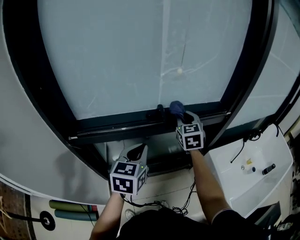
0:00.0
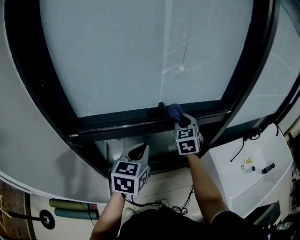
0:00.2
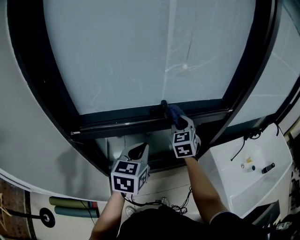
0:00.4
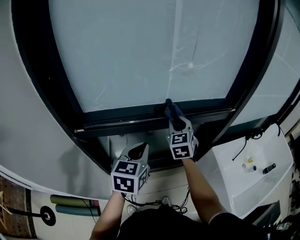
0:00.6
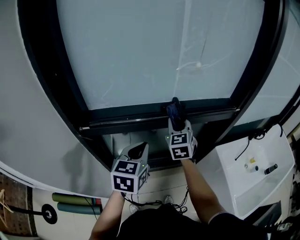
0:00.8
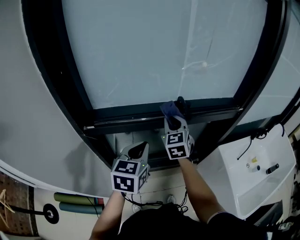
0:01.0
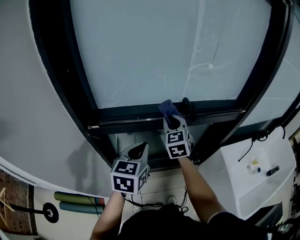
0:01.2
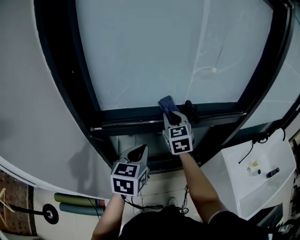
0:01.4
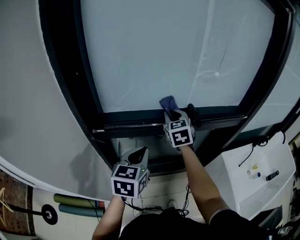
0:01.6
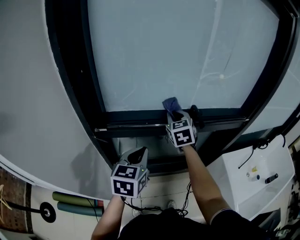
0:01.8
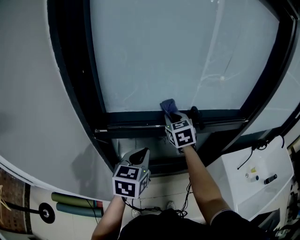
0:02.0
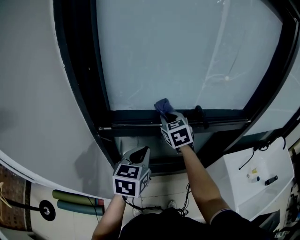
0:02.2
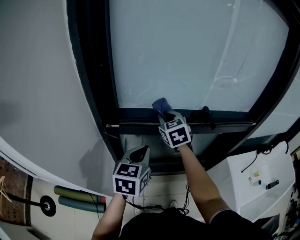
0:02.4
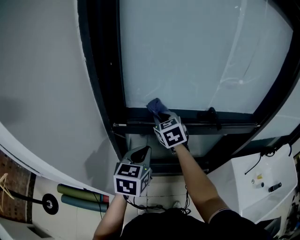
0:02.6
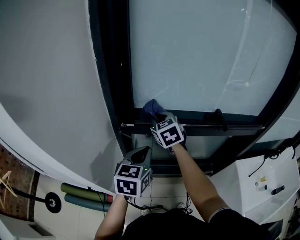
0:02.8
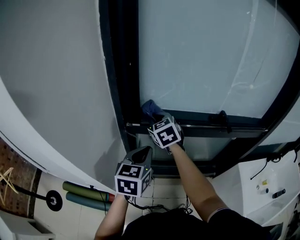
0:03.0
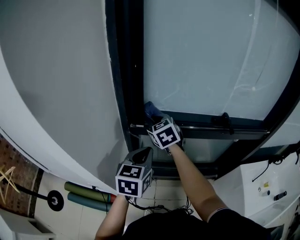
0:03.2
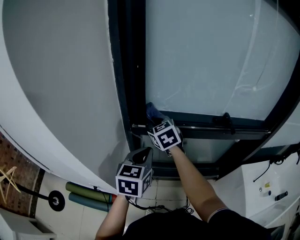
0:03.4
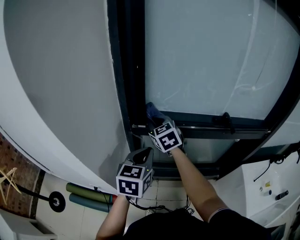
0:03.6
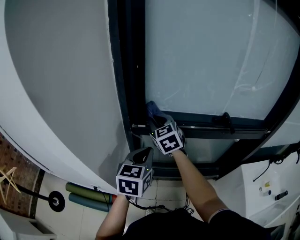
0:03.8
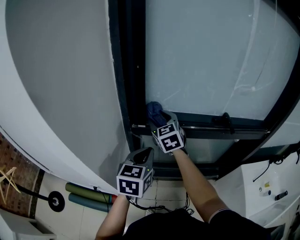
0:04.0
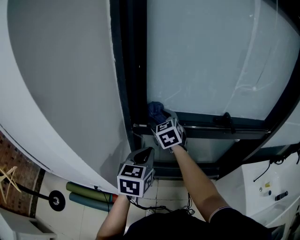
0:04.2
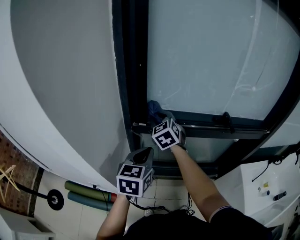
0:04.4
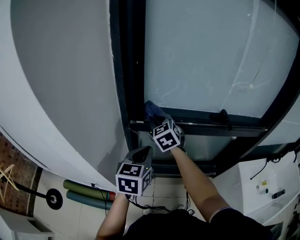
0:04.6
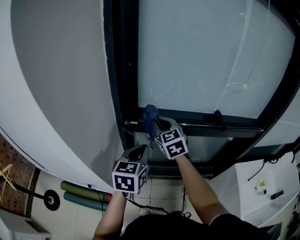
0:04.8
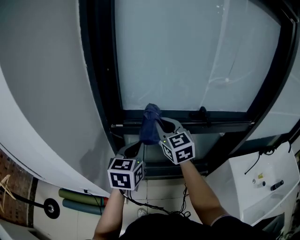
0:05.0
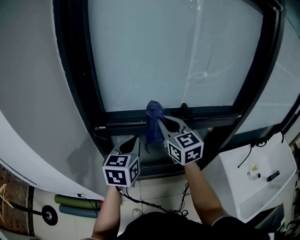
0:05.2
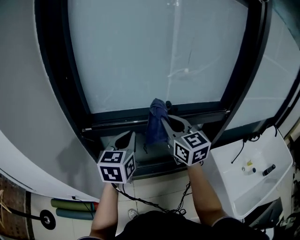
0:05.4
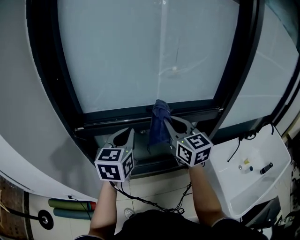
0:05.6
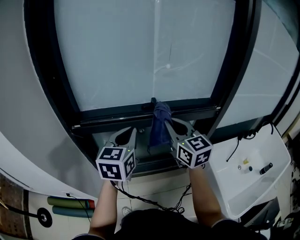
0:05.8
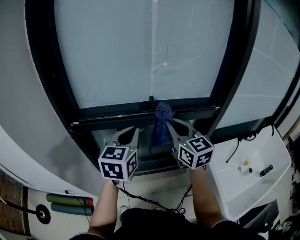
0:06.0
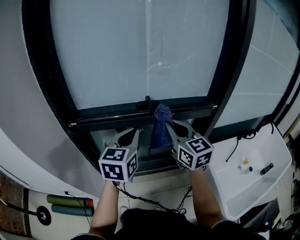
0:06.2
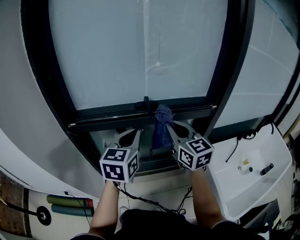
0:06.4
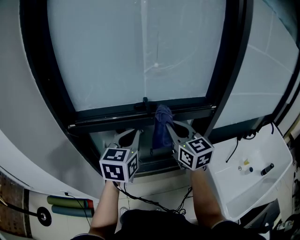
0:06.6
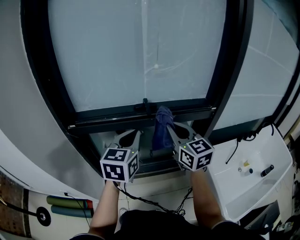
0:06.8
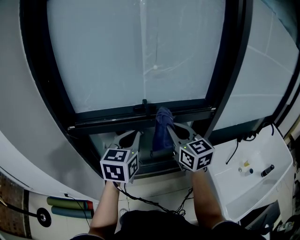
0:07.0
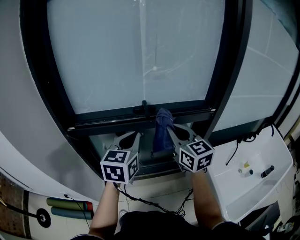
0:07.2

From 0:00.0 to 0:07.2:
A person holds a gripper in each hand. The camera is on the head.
From 0:00.0 to 0:01.4: The left gripper heads to the left, covering approximately 10 cm. The right gripper goes approximately 20 cm to the left.
From 0:01.4 to 0:02.8: The right gripper is displaced to the left by some 20 cm, and turns by approximately 20 degrees. Meanwhile the left gripper heads to the left, covering some 10 cm.
From 0:02.8 to 0:04.4: The right gripper is displaced to the left by roughly 5 cm, and opens.
From 0:04.4 to 0:05.8: The right gripper heads to the right and backward, covering some 40 cm, turns by roughly 30 degrees, and closes. The left gripper heads to the right, covering roughly 25 cm.
From 0:05.8 to 0:07.2: Both grippers travel together to the right, roughly 5 cm.

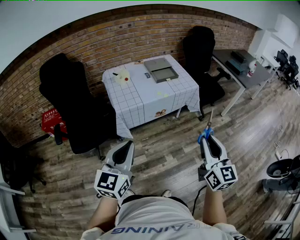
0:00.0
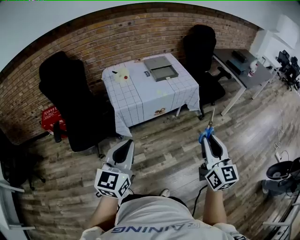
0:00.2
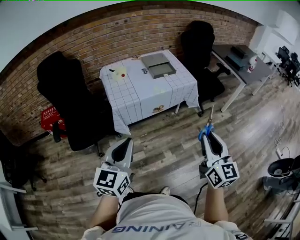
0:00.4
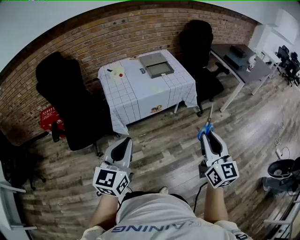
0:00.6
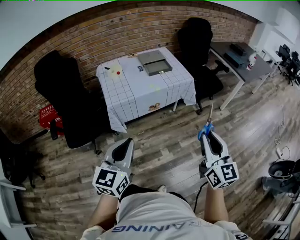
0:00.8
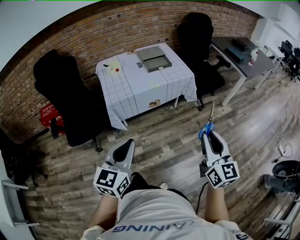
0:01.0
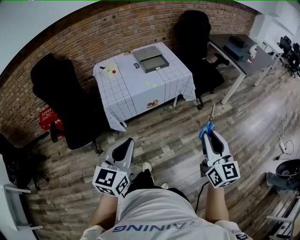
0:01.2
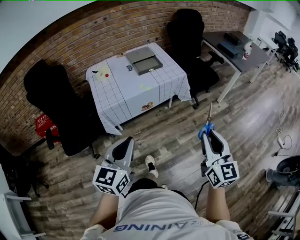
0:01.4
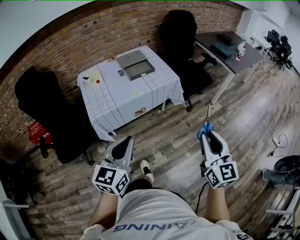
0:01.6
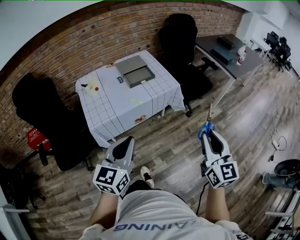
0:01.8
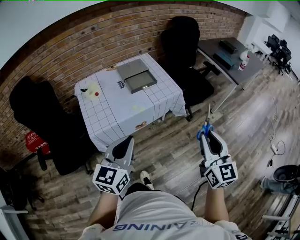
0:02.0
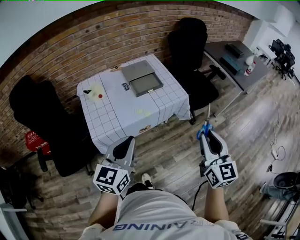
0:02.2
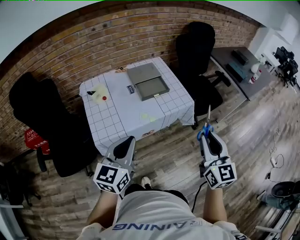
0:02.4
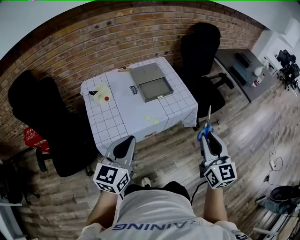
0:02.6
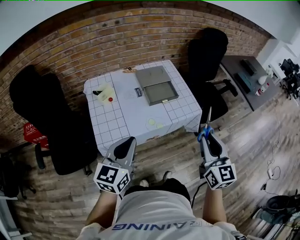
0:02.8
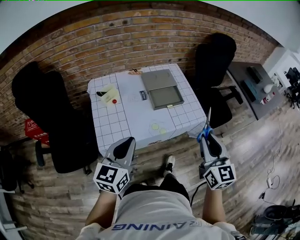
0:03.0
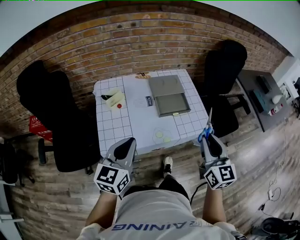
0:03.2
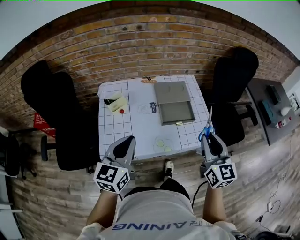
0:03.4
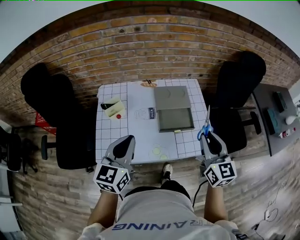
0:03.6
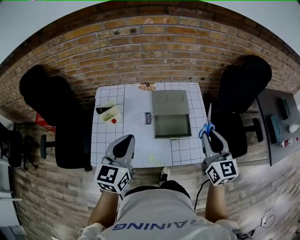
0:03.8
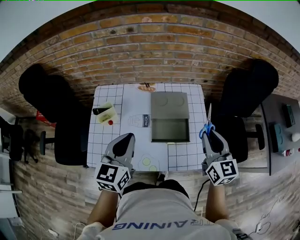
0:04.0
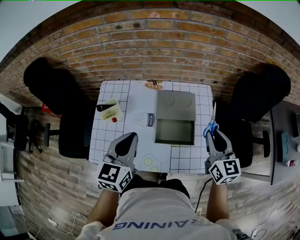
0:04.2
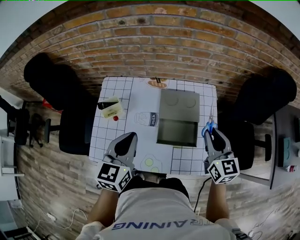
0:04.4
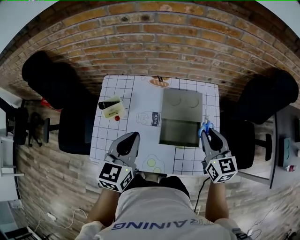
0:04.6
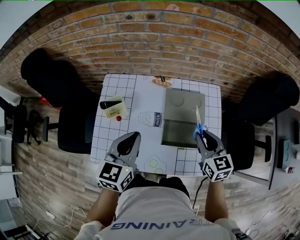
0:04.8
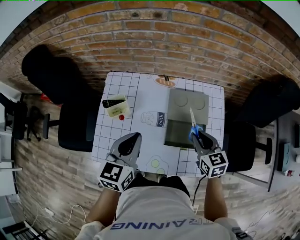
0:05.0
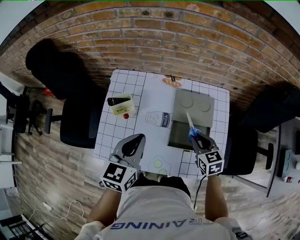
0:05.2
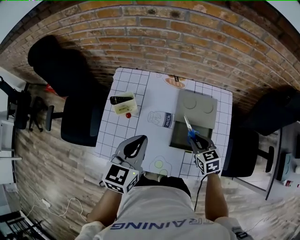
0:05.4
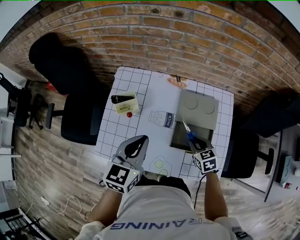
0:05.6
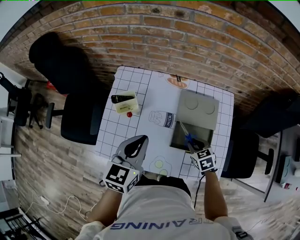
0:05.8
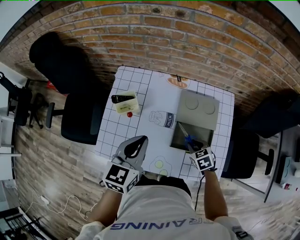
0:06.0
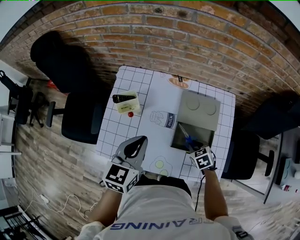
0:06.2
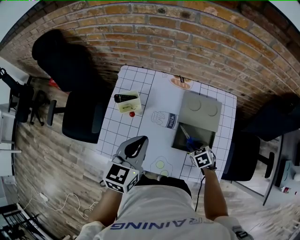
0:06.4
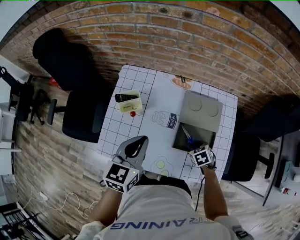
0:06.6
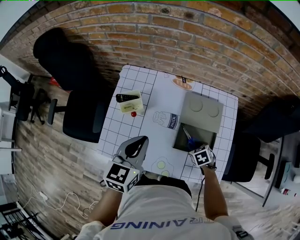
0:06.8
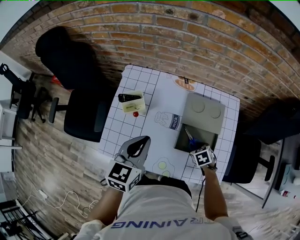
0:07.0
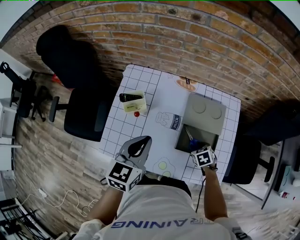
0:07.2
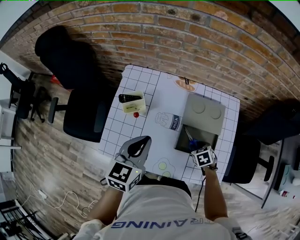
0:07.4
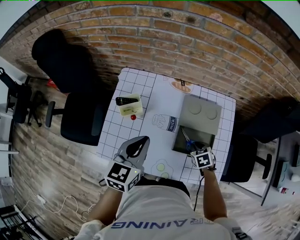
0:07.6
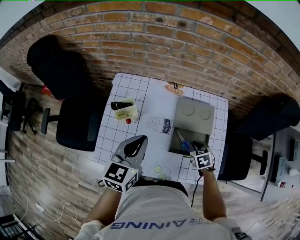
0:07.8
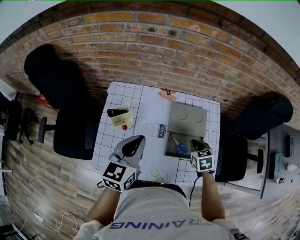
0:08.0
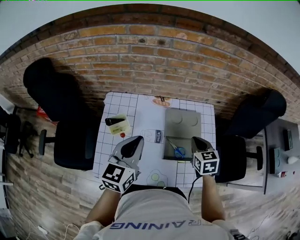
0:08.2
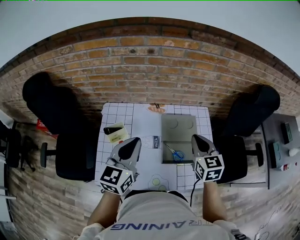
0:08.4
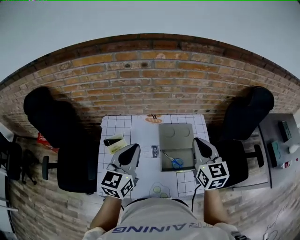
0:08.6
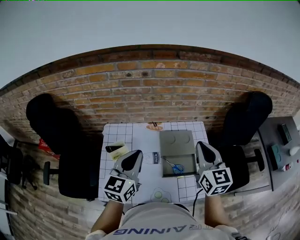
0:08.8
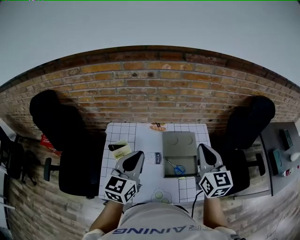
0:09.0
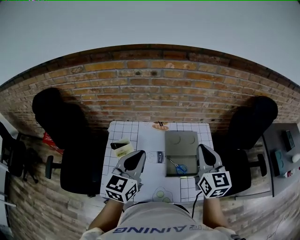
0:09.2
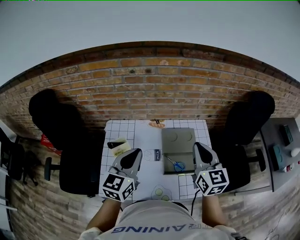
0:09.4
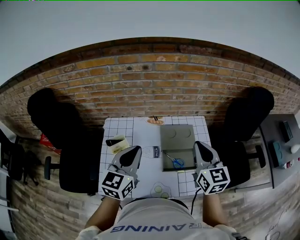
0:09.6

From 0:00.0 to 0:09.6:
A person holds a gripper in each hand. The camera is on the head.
From 0:00.0 to 0:01.6: The grippers both shift to the right and forward by about 15 cm.
From 0:01.6 to 0:03.2: Both grippers travel together forward and to the left, approximately 40 cm.
From 0:03.2 to 0:04.8: Both grippers travel together forward, some 30 cm. The left gripper turns by roughly 20 degrees. The right gripper turns by about 30 degrees.
From 0:04.8 to 0:06.4: The right gripper moves downward, roughly 20 cm, and points its fingers approximately 40 degrees further downward.
From 0:06.4 to 0:08.0: The right gripper is displaced upward by approximately 10 cm, and rotates about 20 degrees.
From 0:08.0 to 0:09.6: The left gripper is displaced upward by some 10 cm, while the right gripper shifts approximately 25 cm upward, and angles its fingers upward, by about 40 degrees.

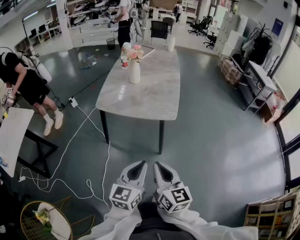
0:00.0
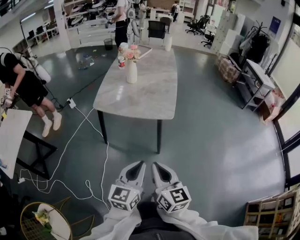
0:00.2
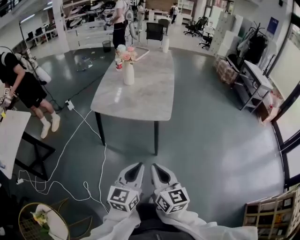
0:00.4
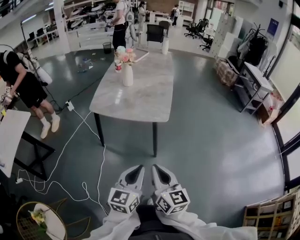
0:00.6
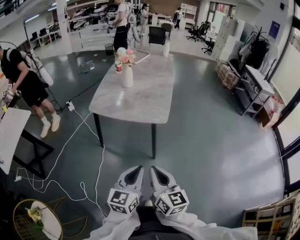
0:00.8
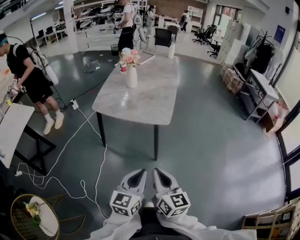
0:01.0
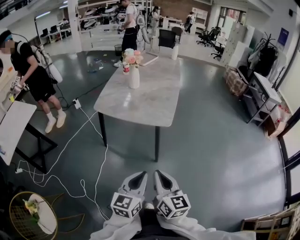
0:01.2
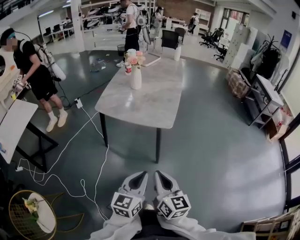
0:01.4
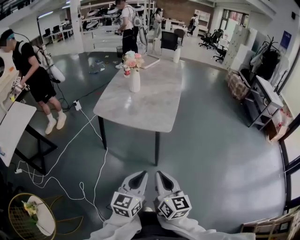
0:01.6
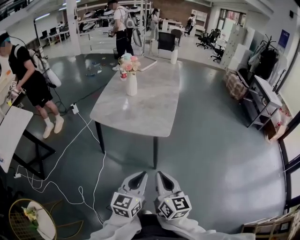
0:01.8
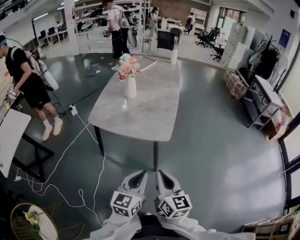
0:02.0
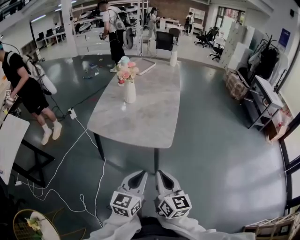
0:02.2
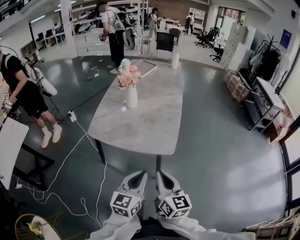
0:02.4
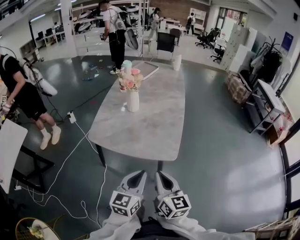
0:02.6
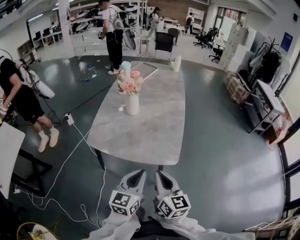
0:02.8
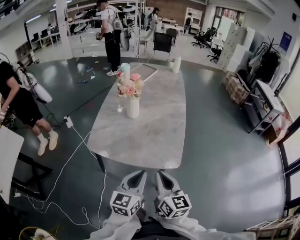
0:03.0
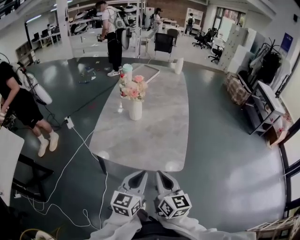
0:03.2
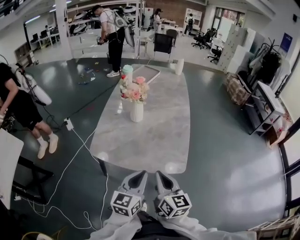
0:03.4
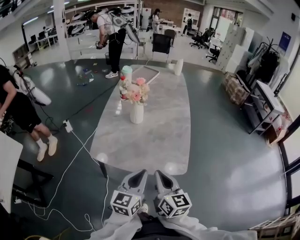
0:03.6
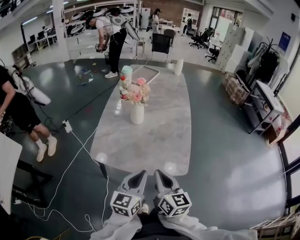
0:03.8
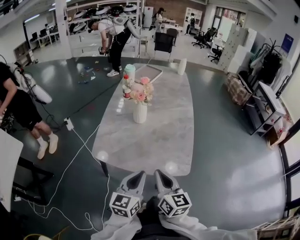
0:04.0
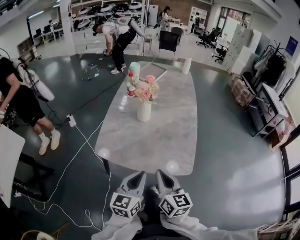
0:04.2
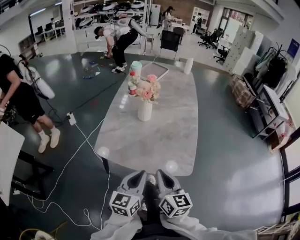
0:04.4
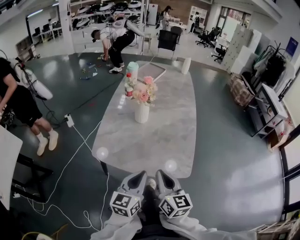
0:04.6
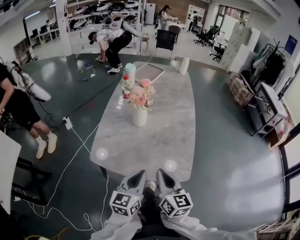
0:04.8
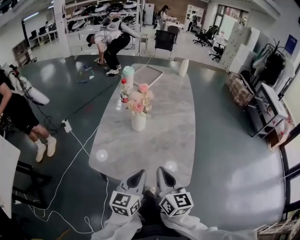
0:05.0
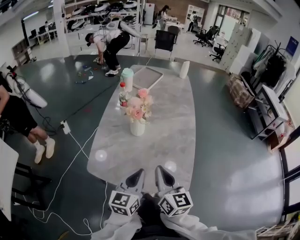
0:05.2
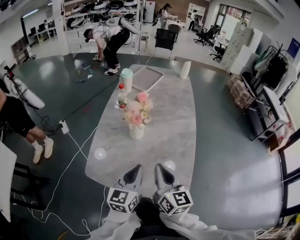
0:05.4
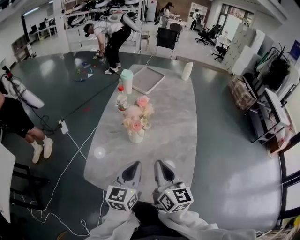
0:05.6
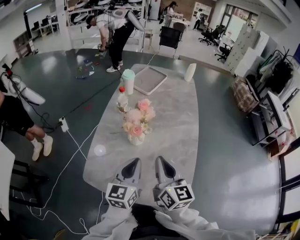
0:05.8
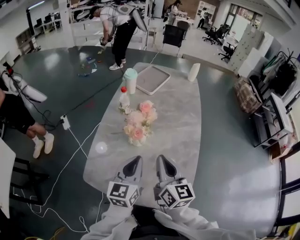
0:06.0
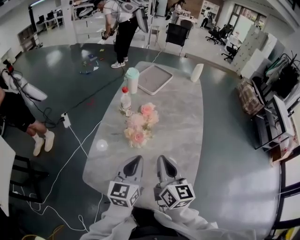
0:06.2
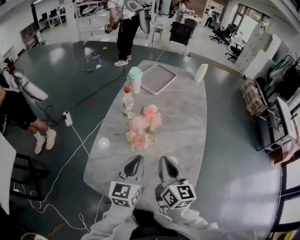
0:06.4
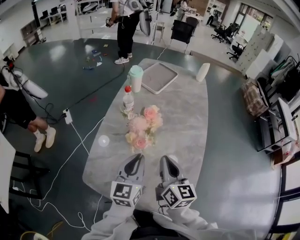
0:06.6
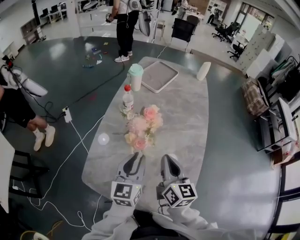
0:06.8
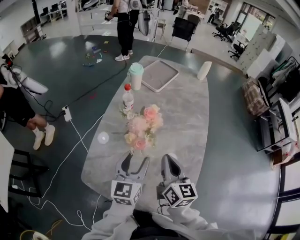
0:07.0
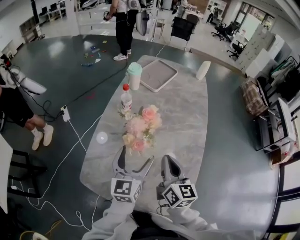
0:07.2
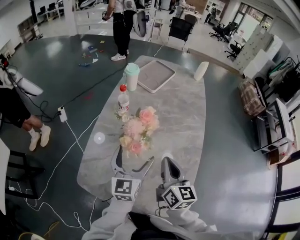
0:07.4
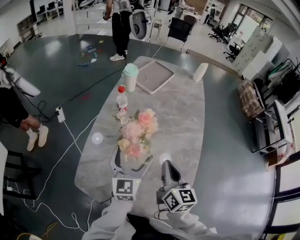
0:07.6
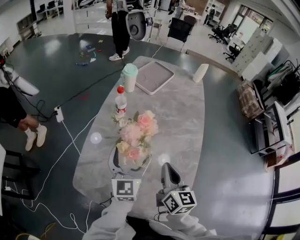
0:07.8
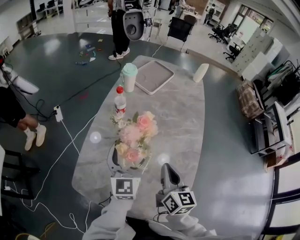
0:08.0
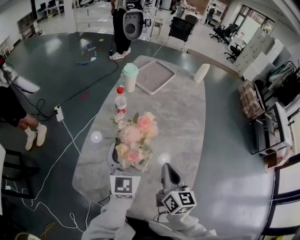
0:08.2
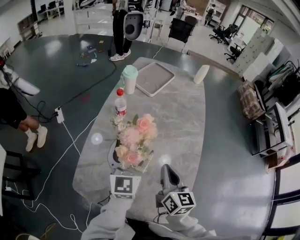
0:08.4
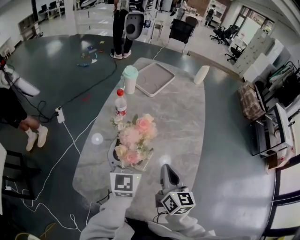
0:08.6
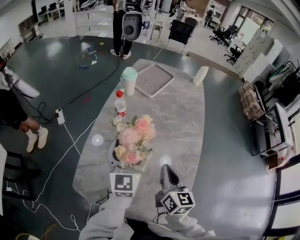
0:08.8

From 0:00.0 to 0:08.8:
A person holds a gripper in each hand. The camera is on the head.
From 0:00.0 to 0:01.4: Both grippers move to the right, about 10 cm.
From 0:01.4 to 0:03.0: Both grippers move forward, roughly 35 cm.
From 0:03.0 to 0:04.4: The grippers both shift to the left and forward by roughly 10 cm.
From 0:04.4 to 0:05.8: Both grippers move forward, roughly 25 cm.
From 0:05.8 to 0:07.4: The right gripper moves forward and downward, approximately 10 cm; the left gripper heads forward, covering approximately 10 cm, and opens its fingers.
From 0:07.4 to 0:08.8: The left gripper moves forward, about 5 cm.
